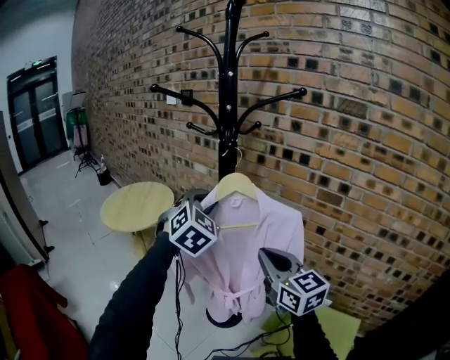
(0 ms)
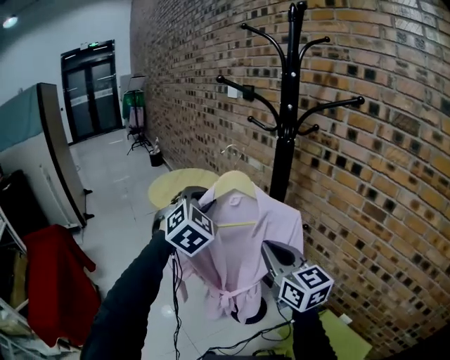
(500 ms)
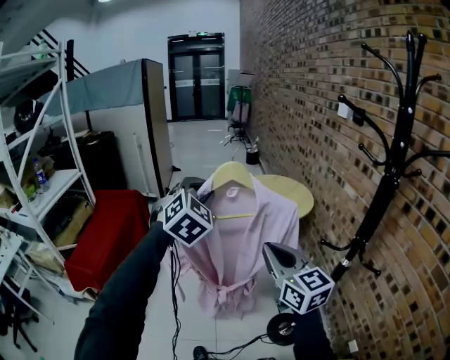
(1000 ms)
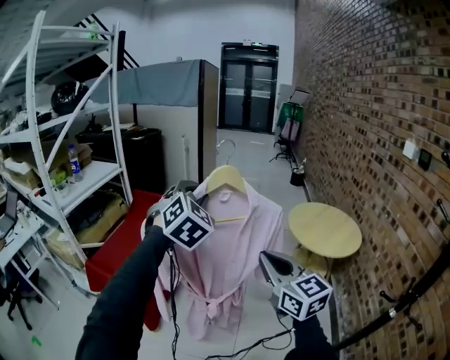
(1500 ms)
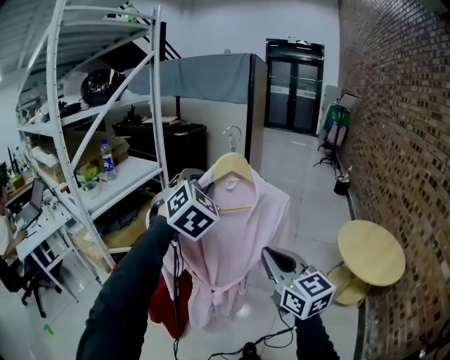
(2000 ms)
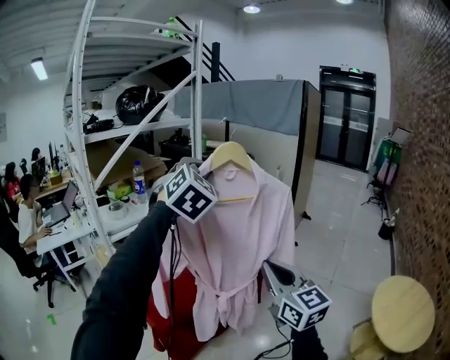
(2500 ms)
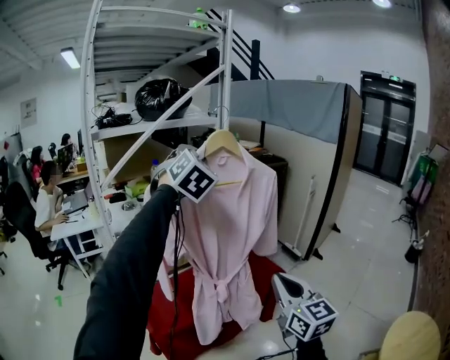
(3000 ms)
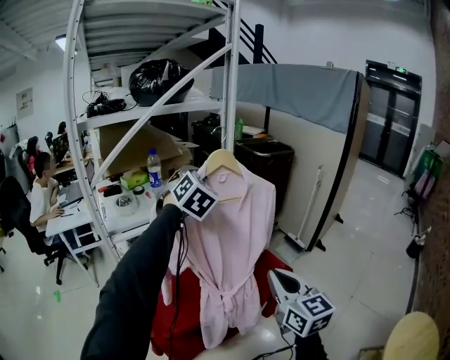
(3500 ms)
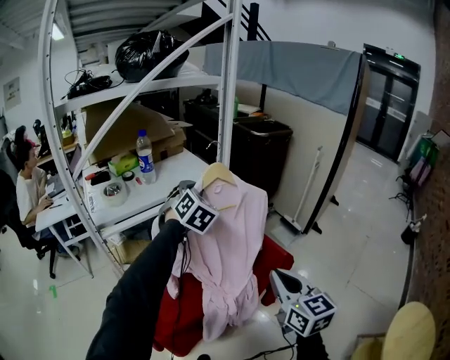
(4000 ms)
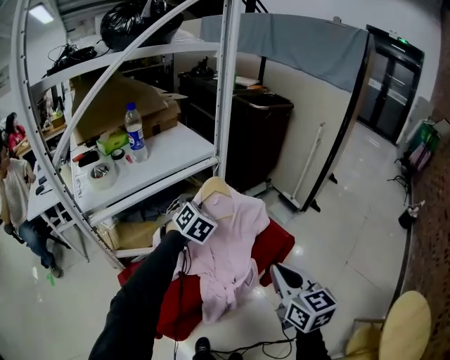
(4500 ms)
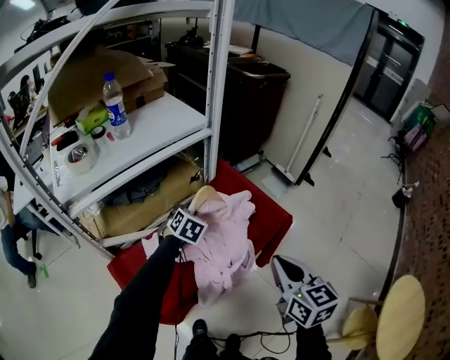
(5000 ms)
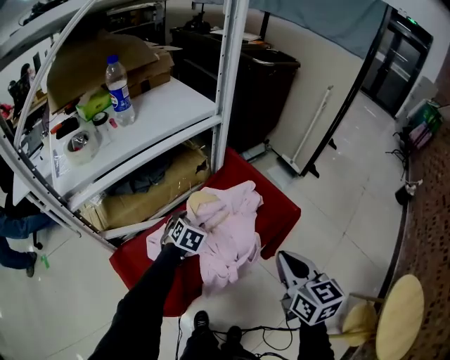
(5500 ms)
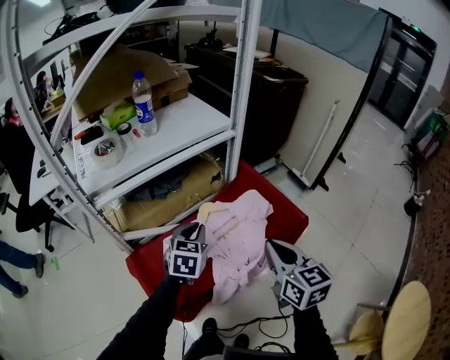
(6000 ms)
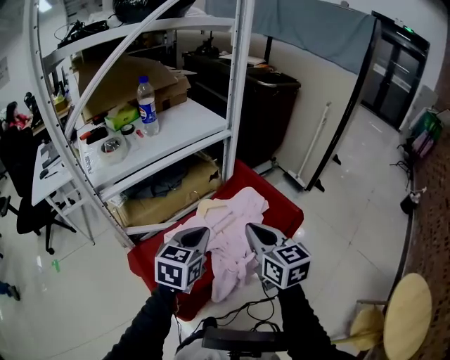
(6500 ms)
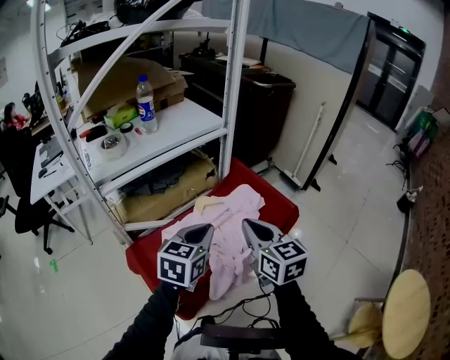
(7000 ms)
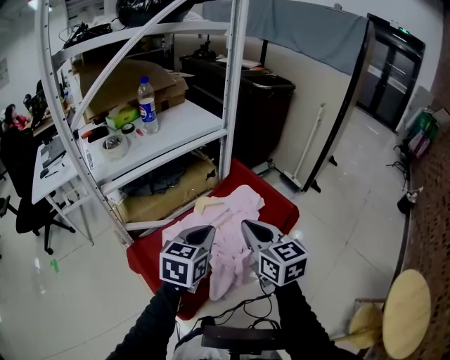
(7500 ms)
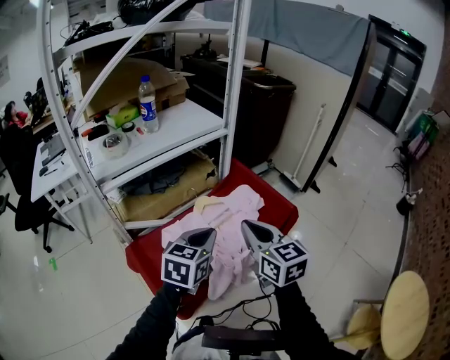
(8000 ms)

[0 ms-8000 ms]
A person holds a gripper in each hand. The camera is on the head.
0 ms to 2000 ms: The two grippers travel together, some 1 m. The right gripper swivels some 70 degrees. The left gripper turns by approximately 80 degrees.
2000 ms to 4000 ms: Both grippers are carried approximately 60 cm. The right gripper rotates some 20 degrees. Meanwhile the left gripper changes its angle by some 40 degrees.
4000 ms to 6000 ms: The right gripper travels downward, forward and to the left by some 15 cm. Meanwhile the left gripper travels downward by some 25 cm, rotates some 40 degrees, and opens, then closes again.
6000 ms to 8000 ms: The right gripper moves backward, approximately 5 cm, while the left gripper moves backward and upward, some 15 cm.

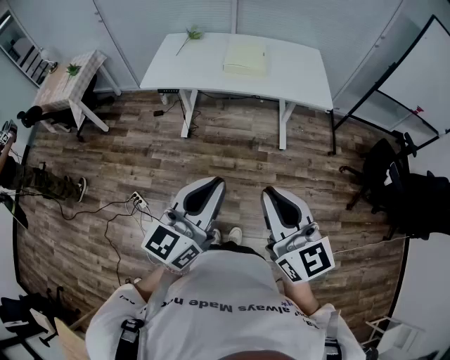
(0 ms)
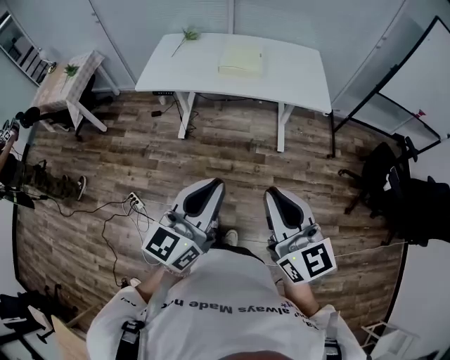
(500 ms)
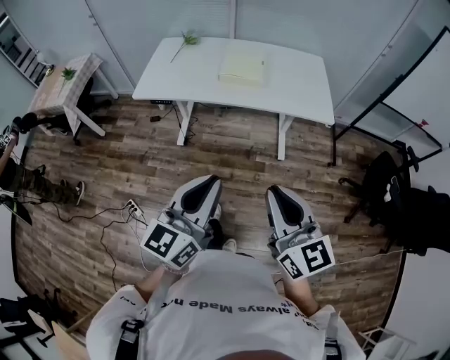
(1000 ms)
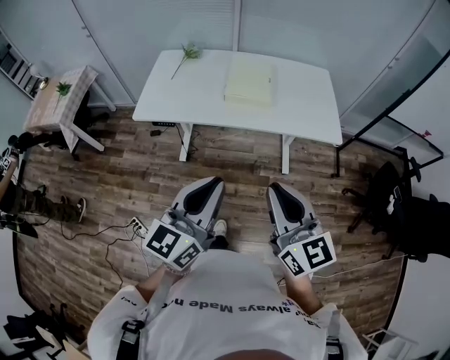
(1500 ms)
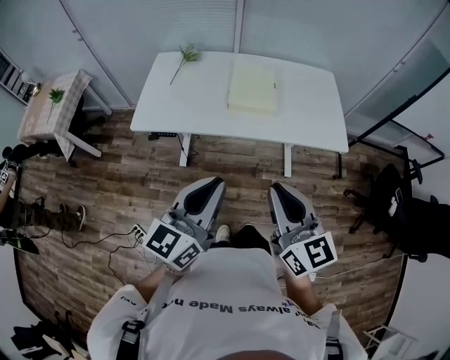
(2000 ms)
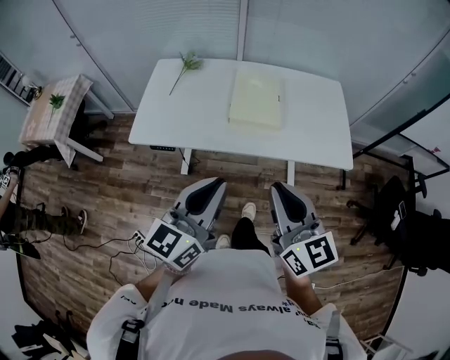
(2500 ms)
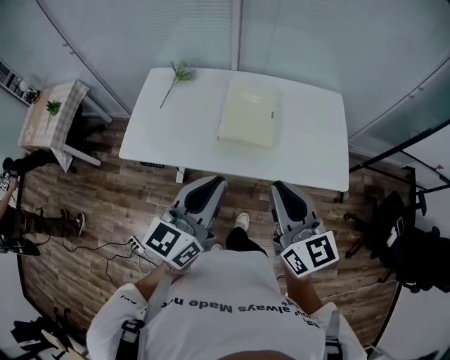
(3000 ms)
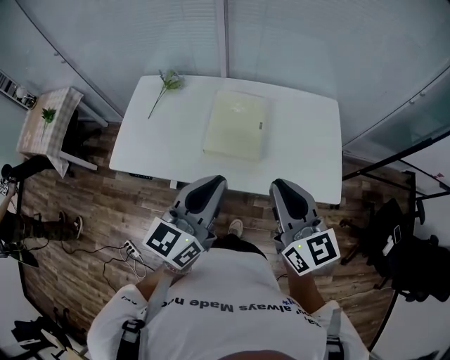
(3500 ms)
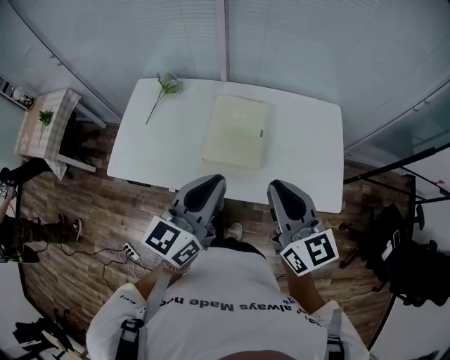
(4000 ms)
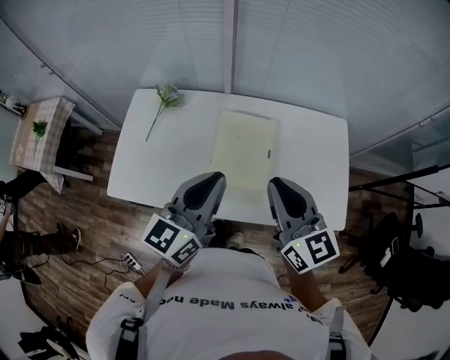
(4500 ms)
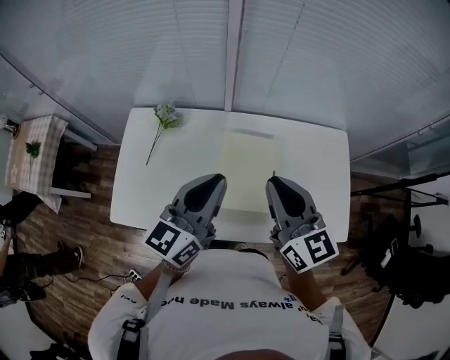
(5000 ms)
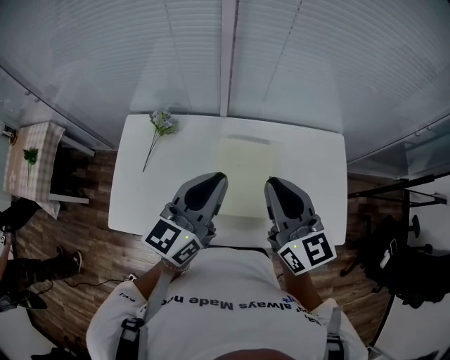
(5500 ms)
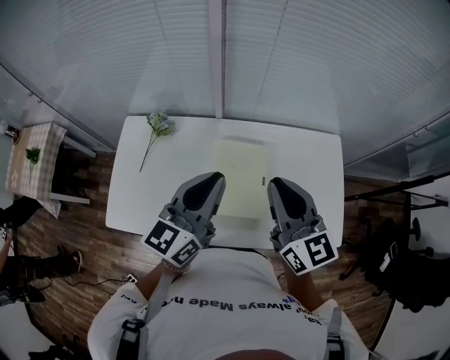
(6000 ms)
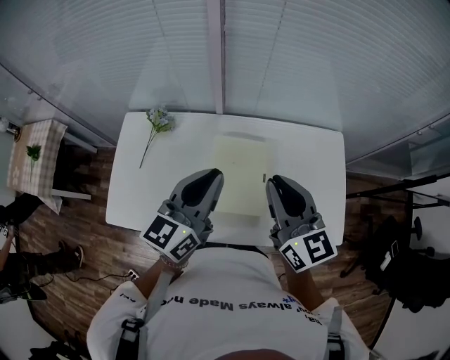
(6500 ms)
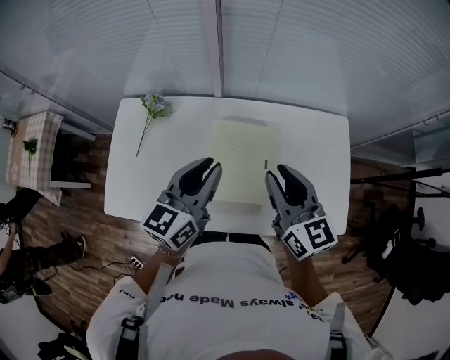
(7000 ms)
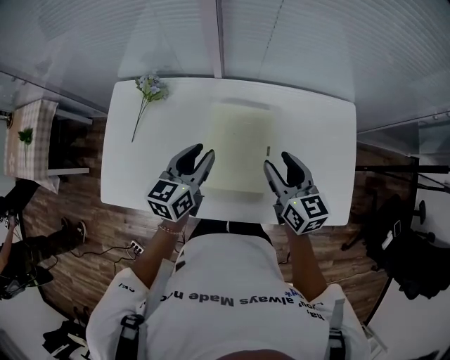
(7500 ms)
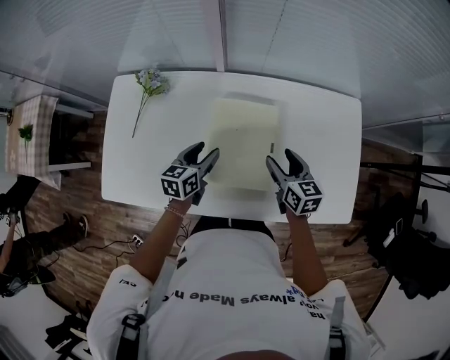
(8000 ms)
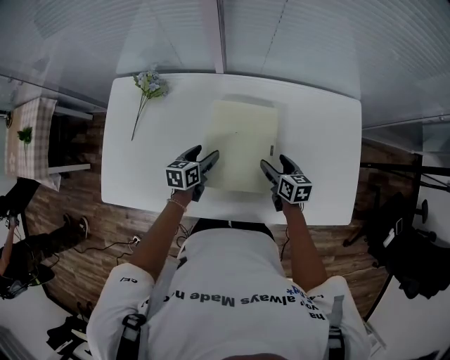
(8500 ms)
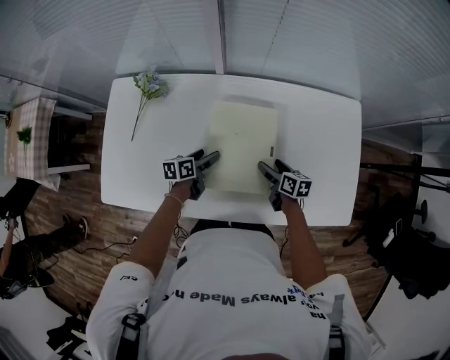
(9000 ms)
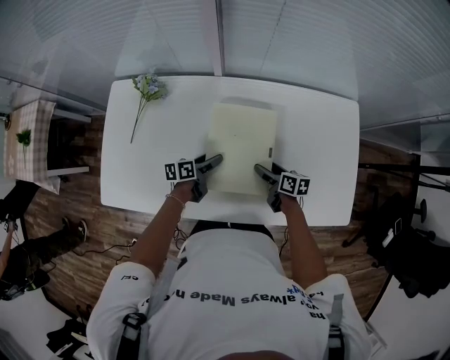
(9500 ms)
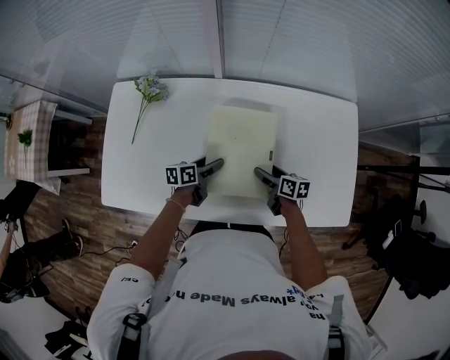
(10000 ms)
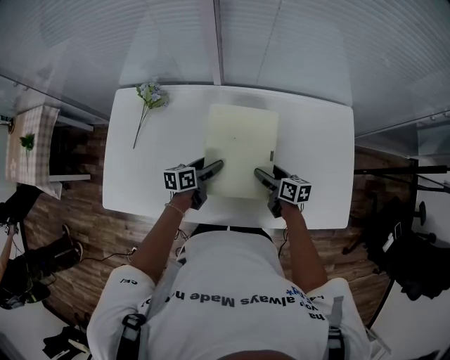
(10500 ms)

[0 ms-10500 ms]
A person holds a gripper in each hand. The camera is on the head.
0 ms to 2000 ms: Both grippers move forward, some 35 cm.
2000 ms to 4000 ms: The grippers both shift forward by some 35 cm.
4000 ms to 6500 ms: The grippers both shift forward by some 20 cm.
6500 ms to 8500 ms: Both grippers travel together downward, approximately 40 cm. The right gripper tips its fingers downward by roughly 30 degrees, and opens its fingers. The left gripper tilts its fingers about 40 degrees downward, and opens up.

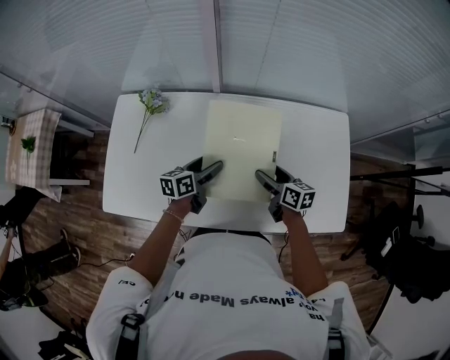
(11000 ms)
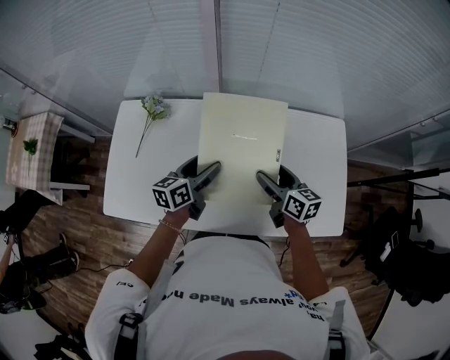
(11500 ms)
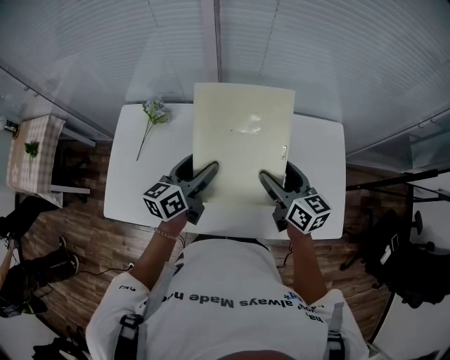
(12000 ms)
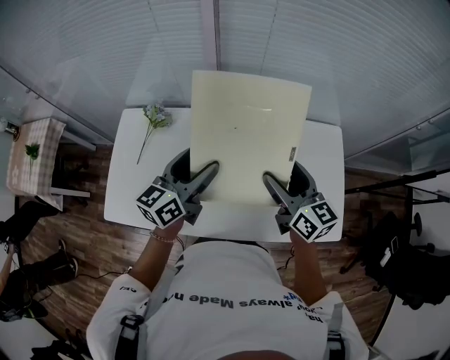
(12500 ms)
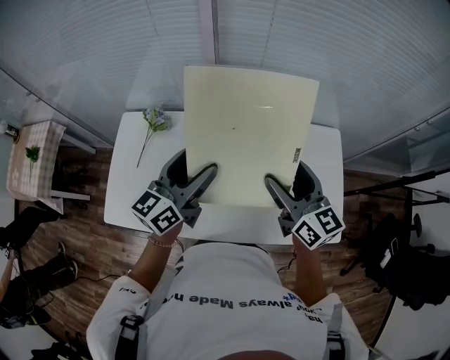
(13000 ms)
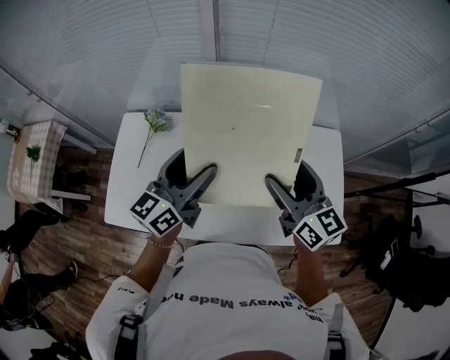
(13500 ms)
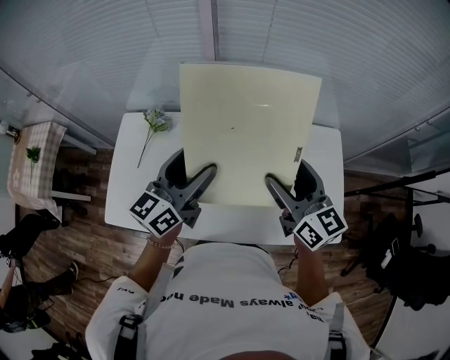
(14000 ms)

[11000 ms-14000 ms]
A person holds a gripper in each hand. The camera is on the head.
11000 ms to 12500 ms: Both grippers travel together upward, some 25 cm. The left gripper turns by roughly 30 degrees. Meanwhile the right gripper changes its angle by roughly 30 degrees.
12500 ms to 14000 ms: The two grippers go approximately 5 cm upward.

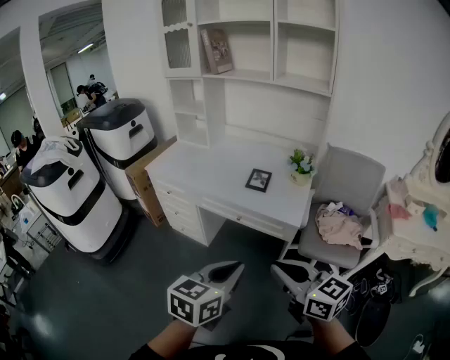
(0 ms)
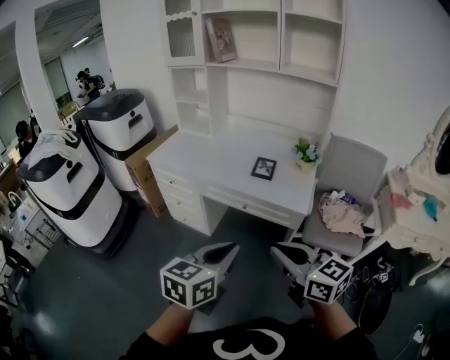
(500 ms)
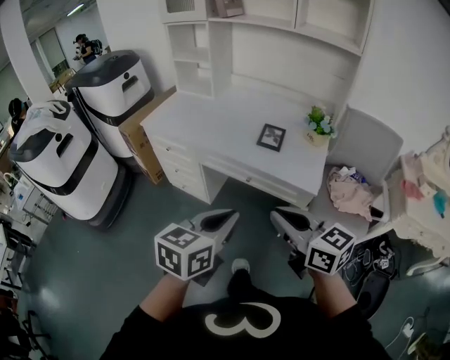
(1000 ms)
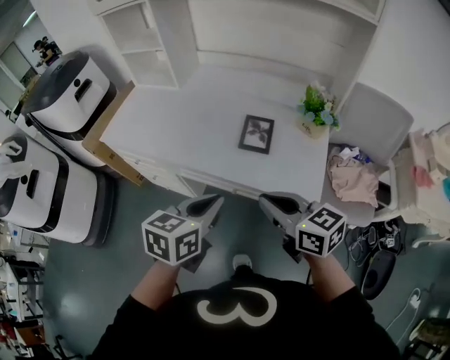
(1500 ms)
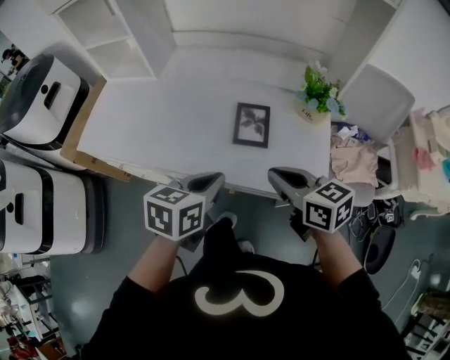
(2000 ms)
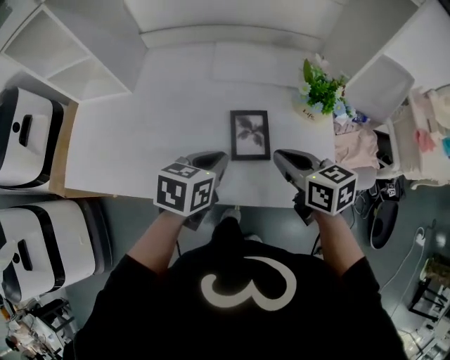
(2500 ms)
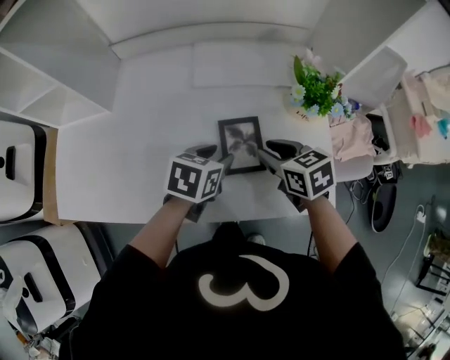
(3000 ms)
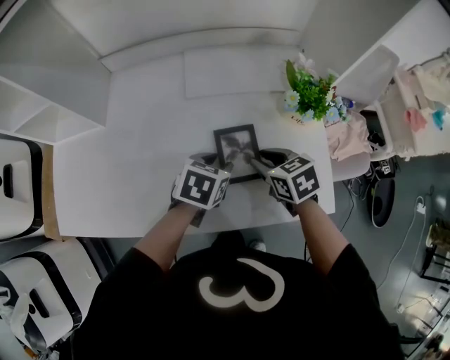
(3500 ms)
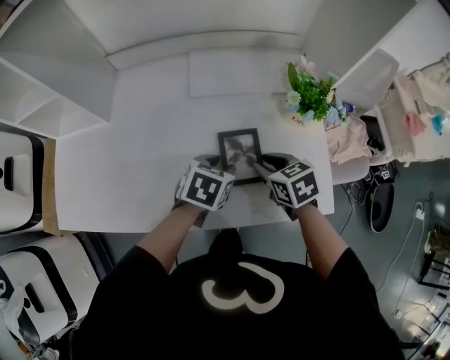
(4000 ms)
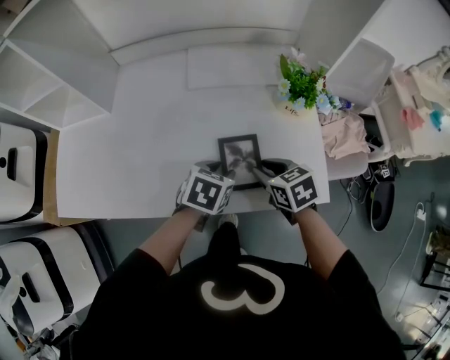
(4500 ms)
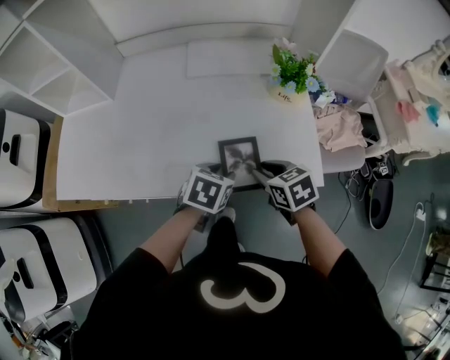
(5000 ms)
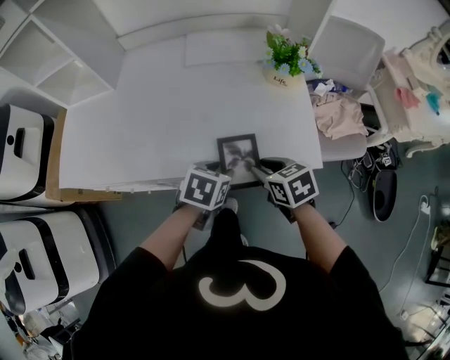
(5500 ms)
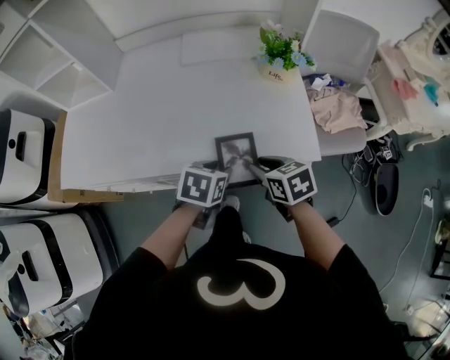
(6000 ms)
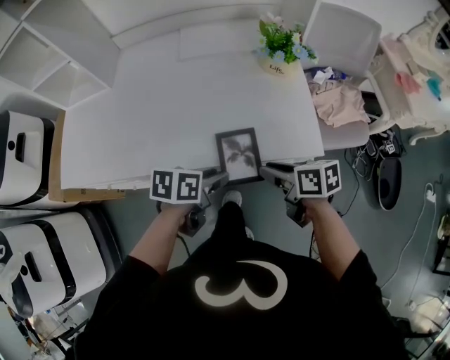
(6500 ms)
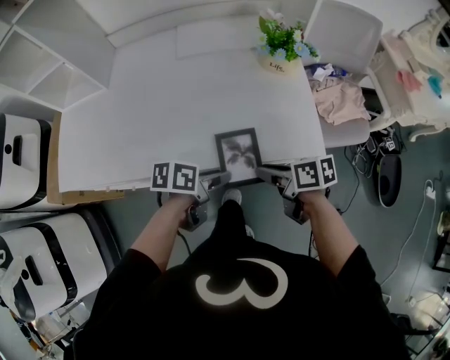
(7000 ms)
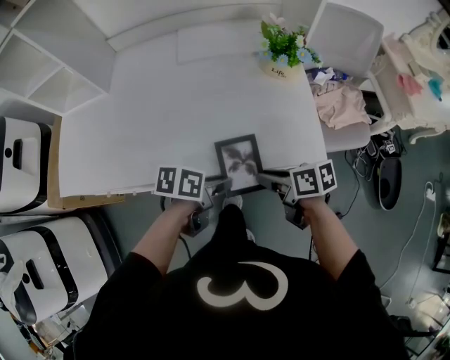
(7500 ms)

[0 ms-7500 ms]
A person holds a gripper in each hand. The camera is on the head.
0 ms to 2000 ms: The pair of grippers is taken forward, roughly 40 cm. The left gripper turns by about 20 degrees. Meanwhile the right gripper swivels roughly 20 degrees.
2000 ms to 4000 ms: The two grippers go approximately 25 cm forward and downward. The right gripper swivels some 30 degrees, and opens, while the left gripper turns by about 30 degrees, and opens its fingers.
4000 ms to 5500 ms: The grippers both shift backward by approximately 15 cm.
5500 ms to 7500 ms: The right gripper rotates some 40 degrees. Meanwhile the left gripper turns by some 40 degrees.
